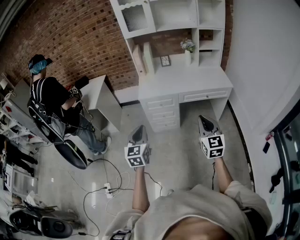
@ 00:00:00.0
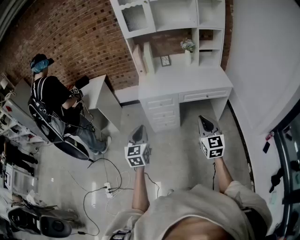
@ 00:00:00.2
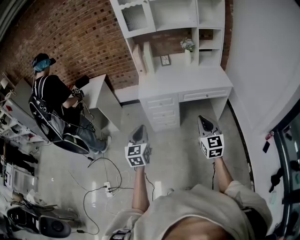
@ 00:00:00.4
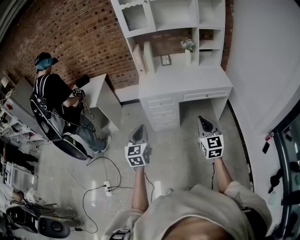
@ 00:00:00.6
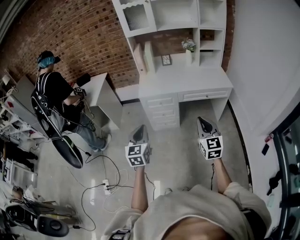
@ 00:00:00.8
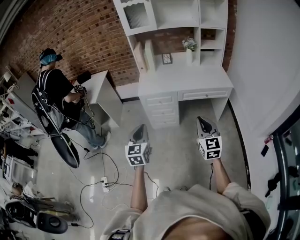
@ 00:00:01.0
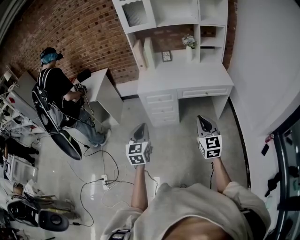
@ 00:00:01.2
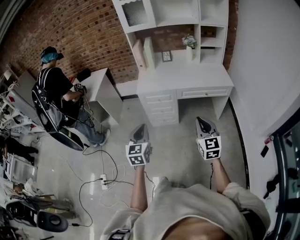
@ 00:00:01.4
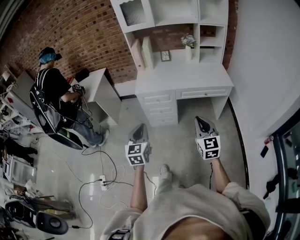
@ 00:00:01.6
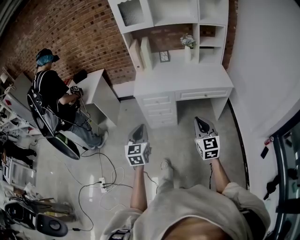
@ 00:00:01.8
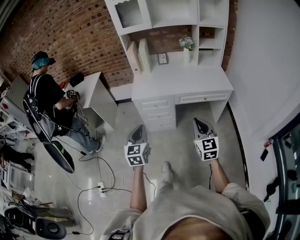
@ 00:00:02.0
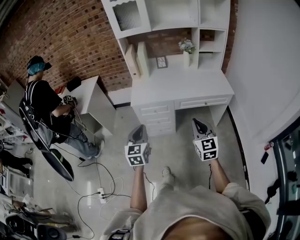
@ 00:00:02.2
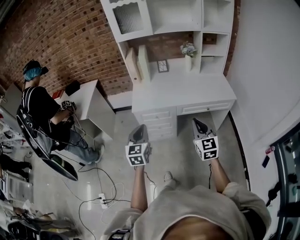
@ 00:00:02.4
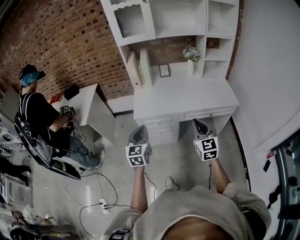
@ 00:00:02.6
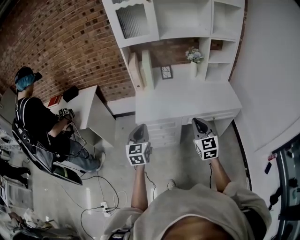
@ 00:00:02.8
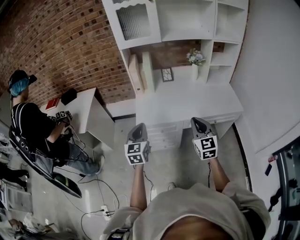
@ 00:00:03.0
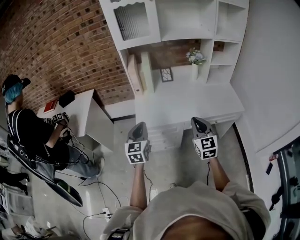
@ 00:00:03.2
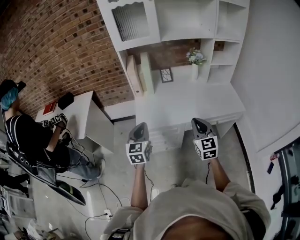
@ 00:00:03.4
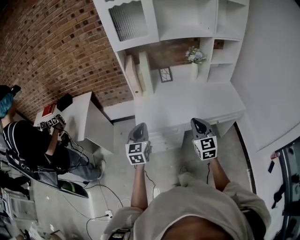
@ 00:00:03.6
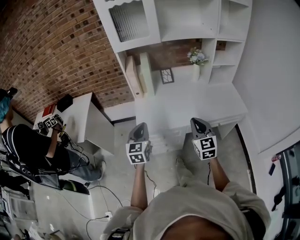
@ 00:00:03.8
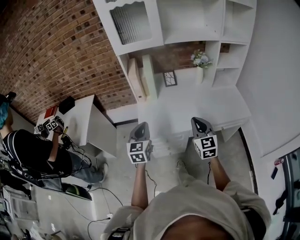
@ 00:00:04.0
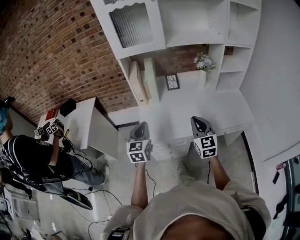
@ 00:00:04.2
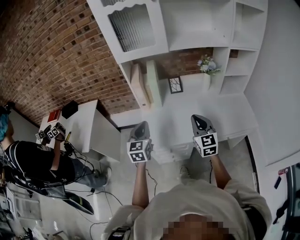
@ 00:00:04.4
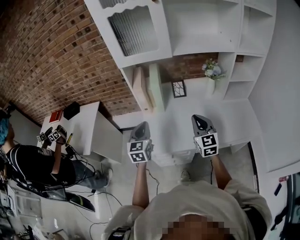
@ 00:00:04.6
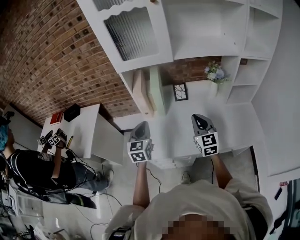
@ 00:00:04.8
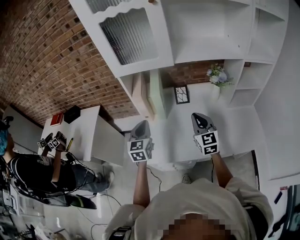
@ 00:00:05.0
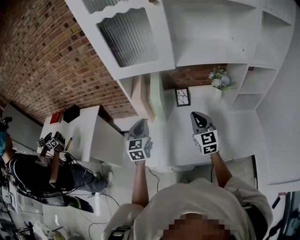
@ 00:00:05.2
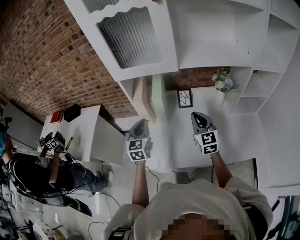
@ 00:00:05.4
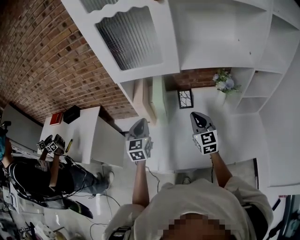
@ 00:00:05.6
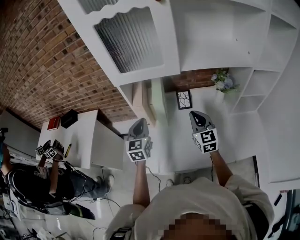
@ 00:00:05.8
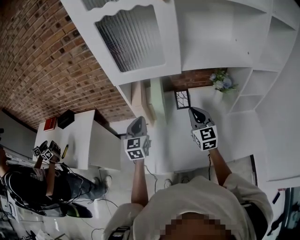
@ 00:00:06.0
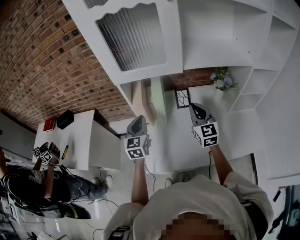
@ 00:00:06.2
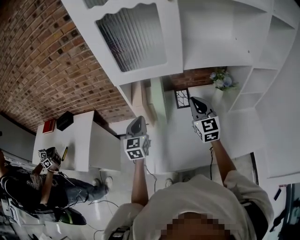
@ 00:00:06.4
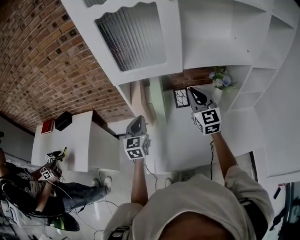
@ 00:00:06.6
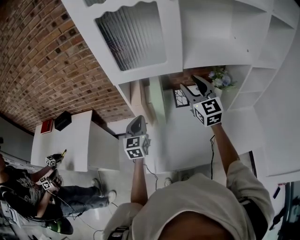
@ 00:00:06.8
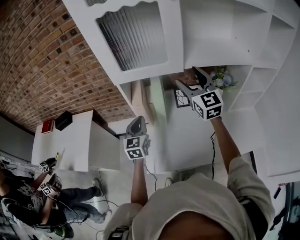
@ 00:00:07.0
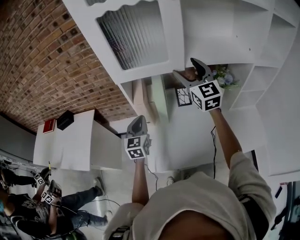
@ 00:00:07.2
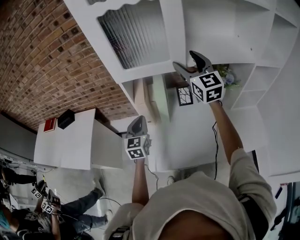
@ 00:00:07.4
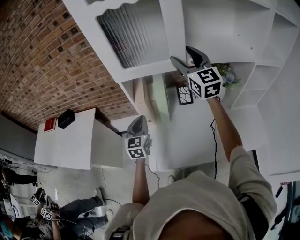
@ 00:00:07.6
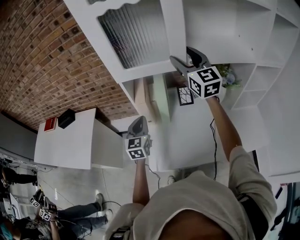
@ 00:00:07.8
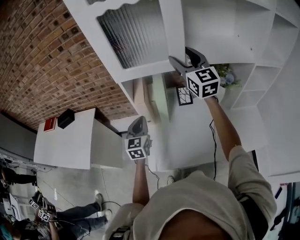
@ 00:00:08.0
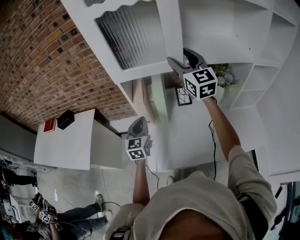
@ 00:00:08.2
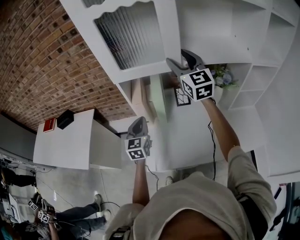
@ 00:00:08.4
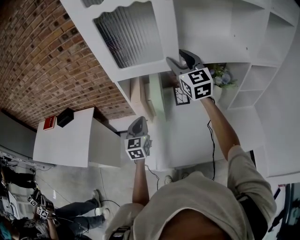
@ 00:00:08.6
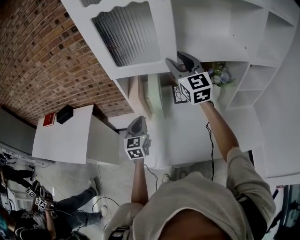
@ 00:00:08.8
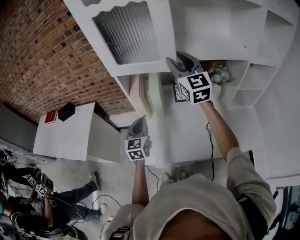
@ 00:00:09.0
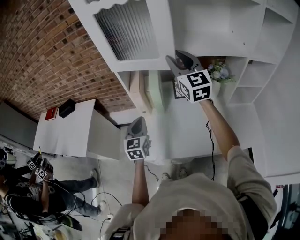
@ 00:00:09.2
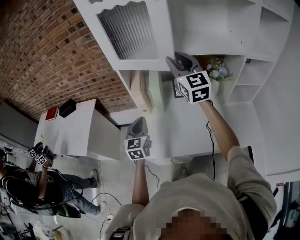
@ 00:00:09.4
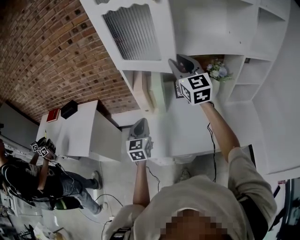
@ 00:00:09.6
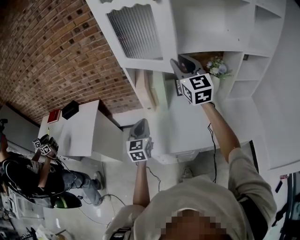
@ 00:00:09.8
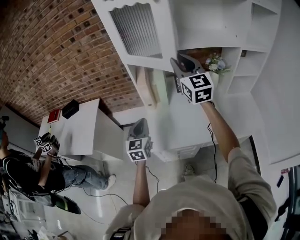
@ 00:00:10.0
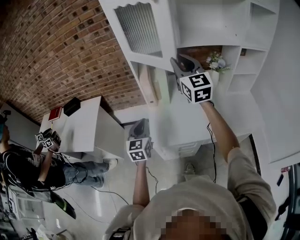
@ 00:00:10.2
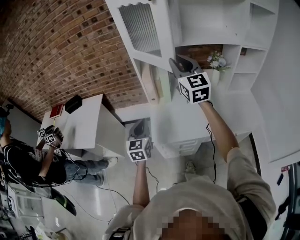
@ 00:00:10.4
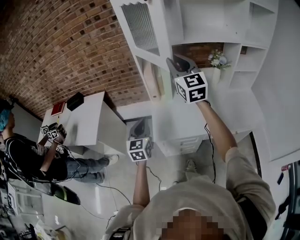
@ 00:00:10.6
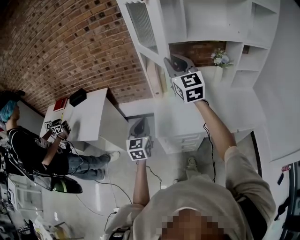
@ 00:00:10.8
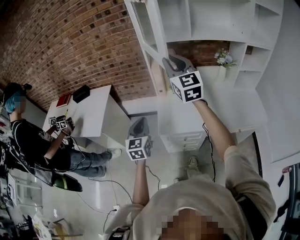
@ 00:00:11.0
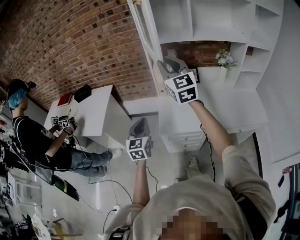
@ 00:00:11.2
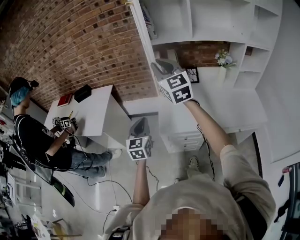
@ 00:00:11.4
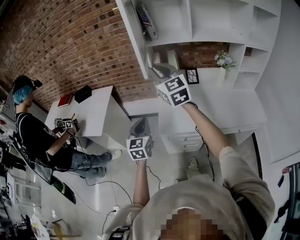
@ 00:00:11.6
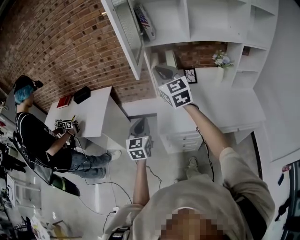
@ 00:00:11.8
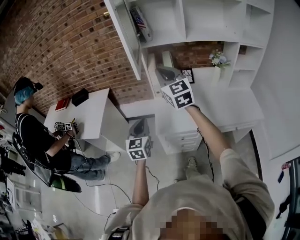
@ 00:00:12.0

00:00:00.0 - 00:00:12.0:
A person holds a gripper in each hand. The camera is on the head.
00:00:00.0 - 00:00:01.6: The right gripper moves some 5 cm, while the left gripper heads to the right, covering about 5 cm.
00:00:01.6 - 00:00:03.0: The two grippers go roughly 35 cm forward.
00:00:03.0 - 00:00:04.4: The two grippers go some 20 cm forward.
00:00:04.4 - 00:00:06.0: Both grippers move forward, some 25 cm.
00:00:06.0 - 00:00:07.6: The right gripper travels upward and forward by roughly 25 cm, and opens its fingers.
00:00:07.6 - 00:00:09.0: The left gripper goes approximately 5 cm backward.
00:00:09.0 - 00:00:10.4: The two grippers go some 20 cm backward and to the left.
00:00:10.4 - 00:00:12.0: The left gripper moves backward, some 10 cm, while the right gripper heads to the left and backward, covering about 15 cm.

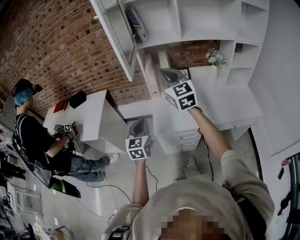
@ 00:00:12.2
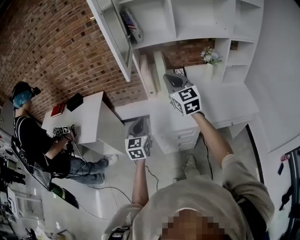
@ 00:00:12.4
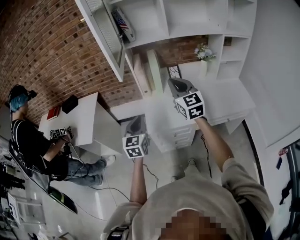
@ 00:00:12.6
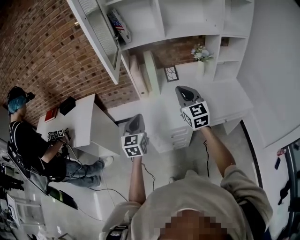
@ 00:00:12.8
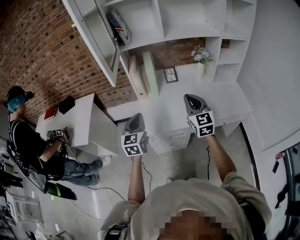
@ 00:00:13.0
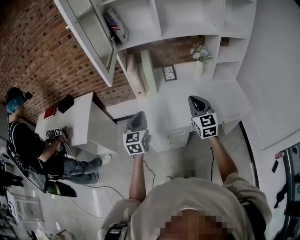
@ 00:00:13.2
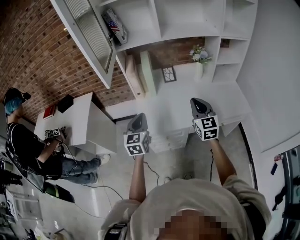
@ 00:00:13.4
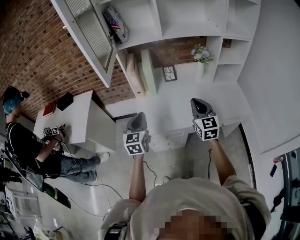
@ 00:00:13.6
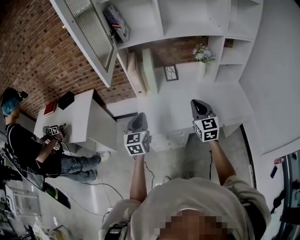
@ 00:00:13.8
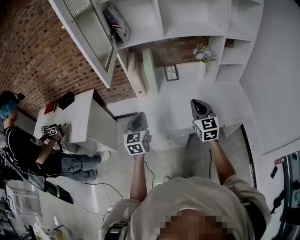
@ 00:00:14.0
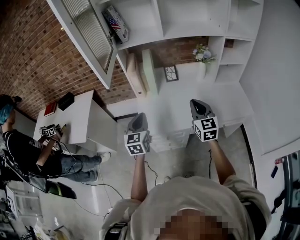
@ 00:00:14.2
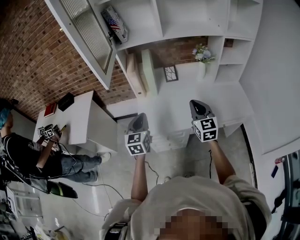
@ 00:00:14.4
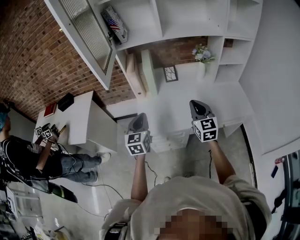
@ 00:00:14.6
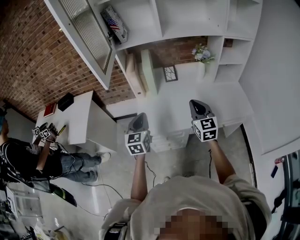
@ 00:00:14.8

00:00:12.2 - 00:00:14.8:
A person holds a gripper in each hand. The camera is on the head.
00:00:12.2 - 00:00:13.4: The right gripper travels to the right and downward by some 25 cm, while the left gripper goes some 10 cm to the right.
00:00:13.4 - 00:00:14.8: There are only small adjustments of the grippers.

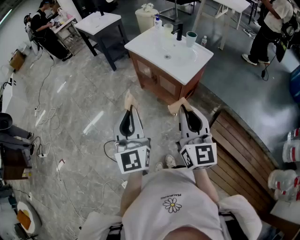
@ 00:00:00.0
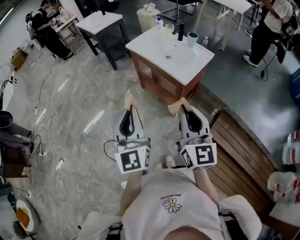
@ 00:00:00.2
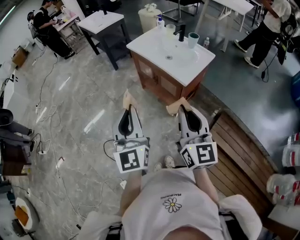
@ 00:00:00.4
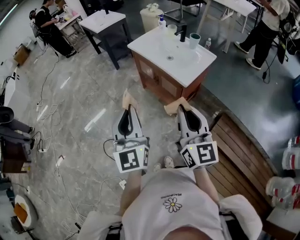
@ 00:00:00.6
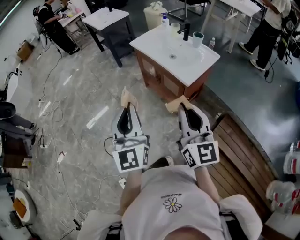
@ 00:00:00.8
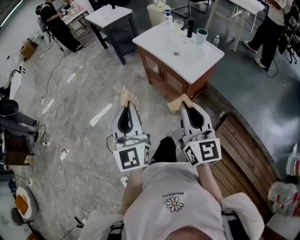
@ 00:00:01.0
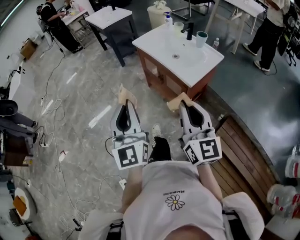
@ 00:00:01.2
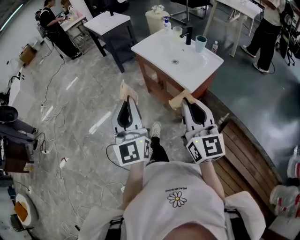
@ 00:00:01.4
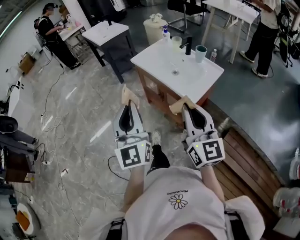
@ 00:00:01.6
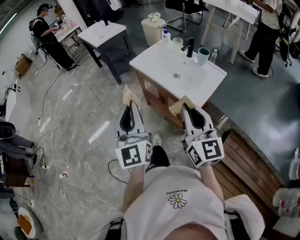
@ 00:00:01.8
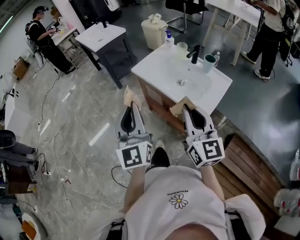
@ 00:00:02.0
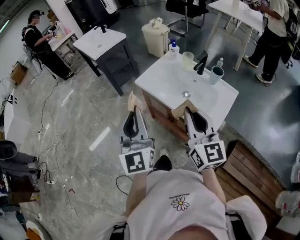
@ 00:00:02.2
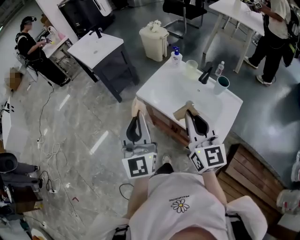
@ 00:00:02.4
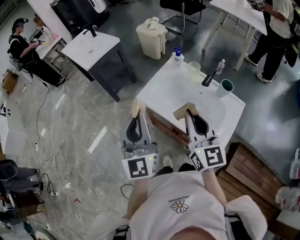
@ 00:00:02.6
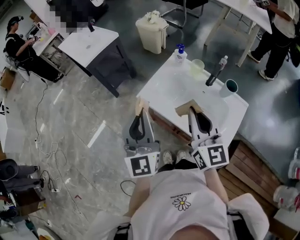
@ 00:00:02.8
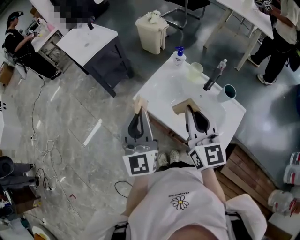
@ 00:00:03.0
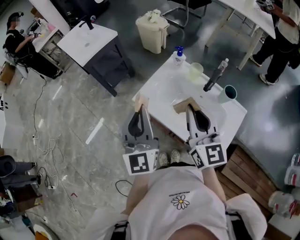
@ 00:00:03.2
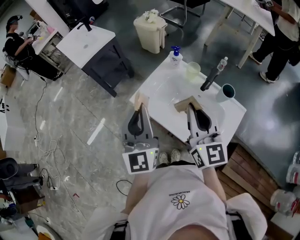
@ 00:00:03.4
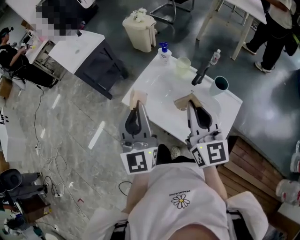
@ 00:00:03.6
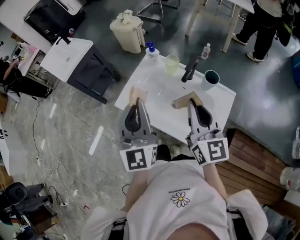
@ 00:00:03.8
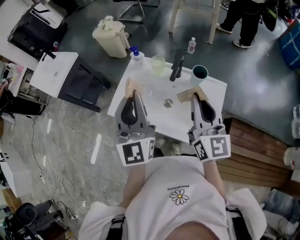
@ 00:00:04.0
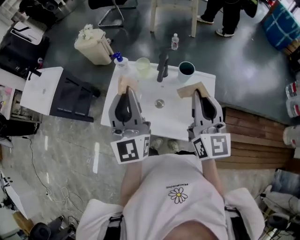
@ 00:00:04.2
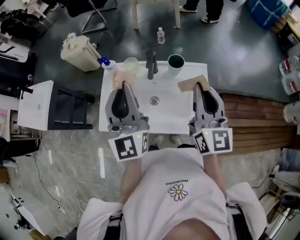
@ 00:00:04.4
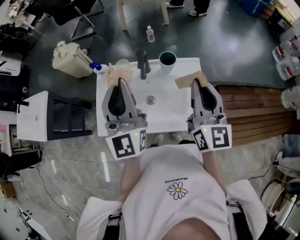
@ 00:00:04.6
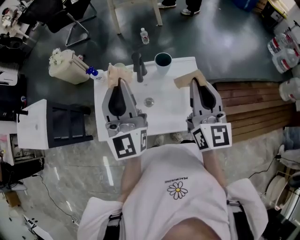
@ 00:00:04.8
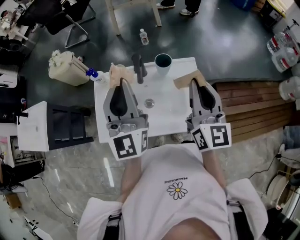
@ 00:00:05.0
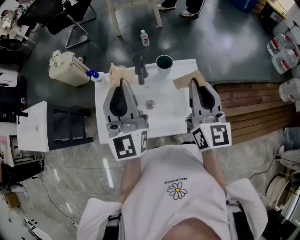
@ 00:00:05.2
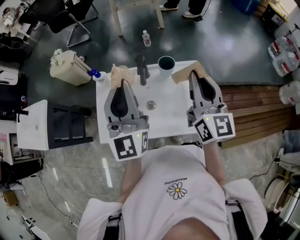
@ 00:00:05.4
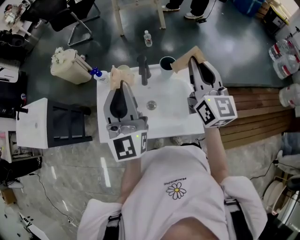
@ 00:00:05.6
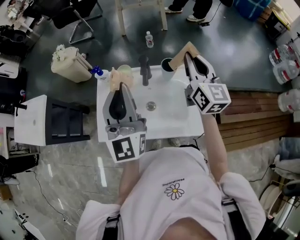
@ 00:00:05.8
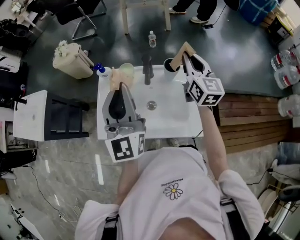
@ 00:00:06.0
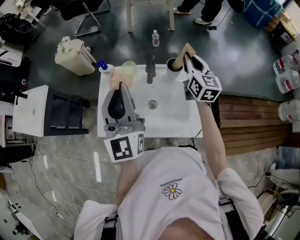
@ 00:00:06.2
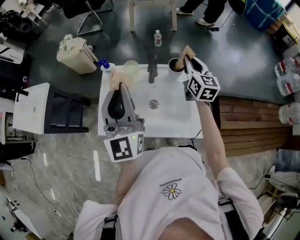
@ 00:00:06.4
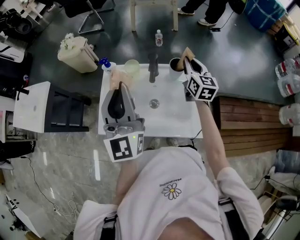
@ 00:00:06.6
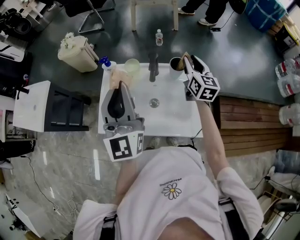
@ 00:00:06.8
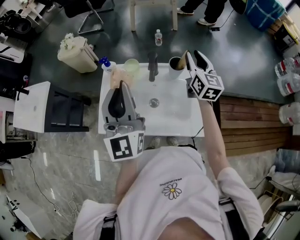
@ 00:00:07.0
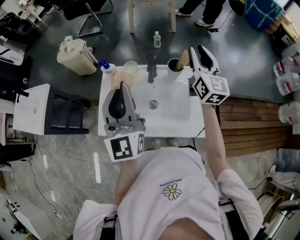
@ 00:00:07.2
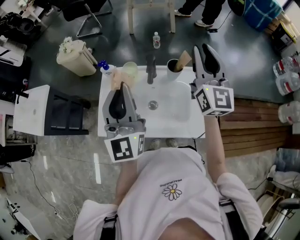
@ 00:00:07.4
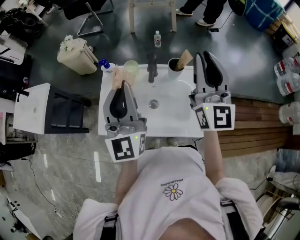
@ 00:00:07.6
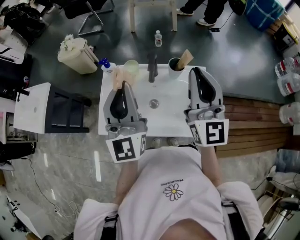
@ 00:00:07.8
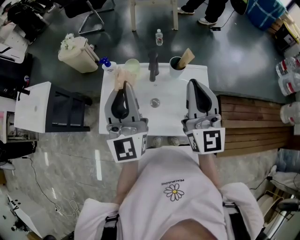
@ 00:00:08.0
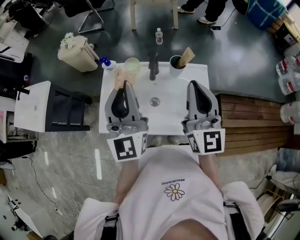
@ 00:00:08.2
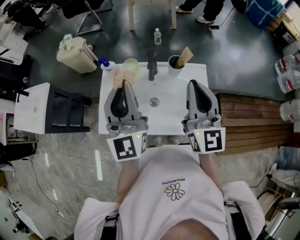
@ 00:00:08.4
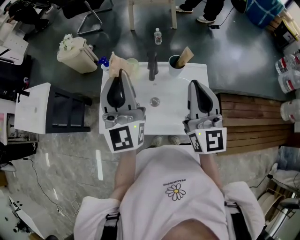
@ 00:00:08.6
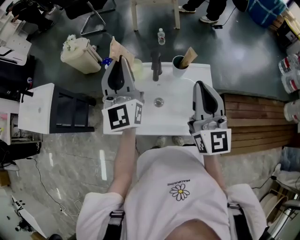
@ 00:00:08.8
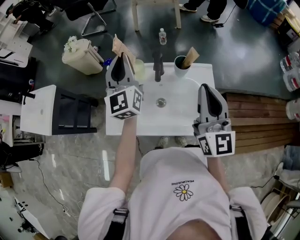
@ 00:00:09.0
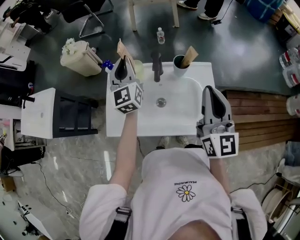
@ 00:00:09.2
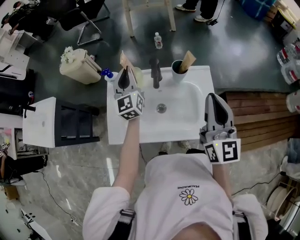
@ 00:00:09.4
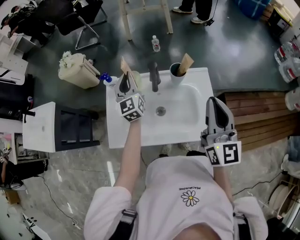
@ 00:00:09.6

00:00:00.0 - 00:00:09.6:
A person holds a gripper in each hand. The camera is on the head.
00:00:00.0 - 00:00:01.6: The two grippers go roughly 10 cm forward.
00:00:01.6 - 00:00:03.2: Both grippers are carried forward, about 50 cm.
00:00:03.2 - 00:00:04.8: The left gripper ends up roughly 20 cm from where it was, and changes its angle by approximately 40 degrees. The right gripper shifts by roughly 20 cm, and changes its angle by some 50 degrees.
00:00:04.8 - 00:00:06.4: The right gripper goes approximately 20 cm forward and downward.
00:00:06.4 - 00:00:08.0: The right gripper travels backward and upward by about 20 cm, and turns by about 20 degrees.
00:00:08.0 - 00:00:09.6: The right gripper moves approximately 5 cm; the left gripper heads forward and downward, covering approximately 25 cm.
